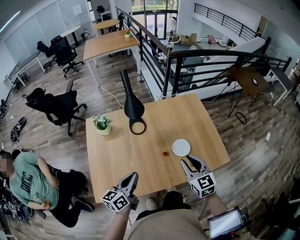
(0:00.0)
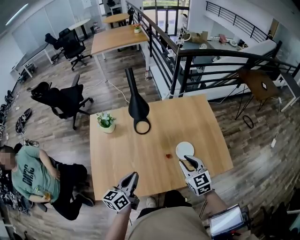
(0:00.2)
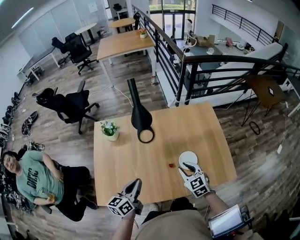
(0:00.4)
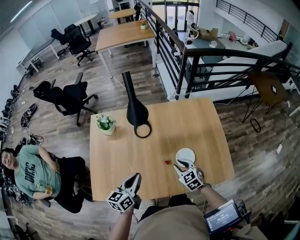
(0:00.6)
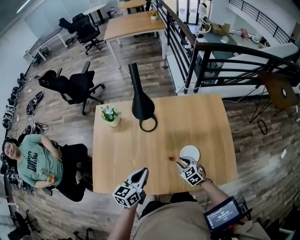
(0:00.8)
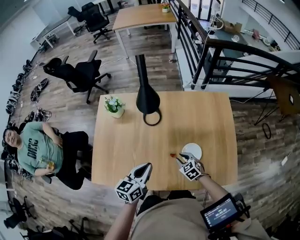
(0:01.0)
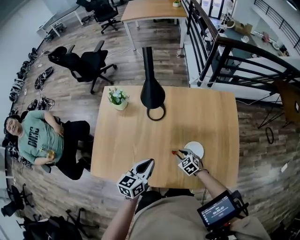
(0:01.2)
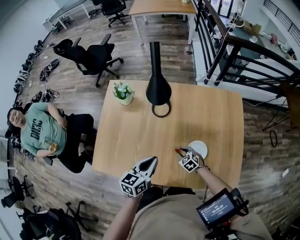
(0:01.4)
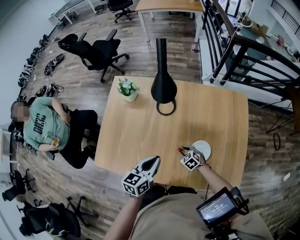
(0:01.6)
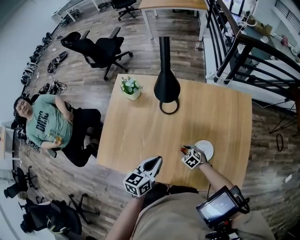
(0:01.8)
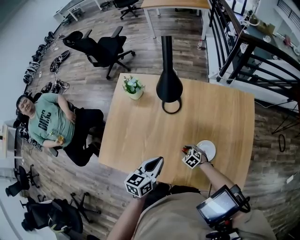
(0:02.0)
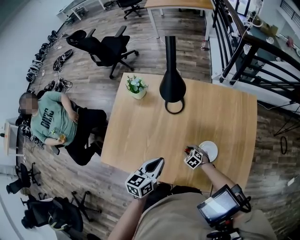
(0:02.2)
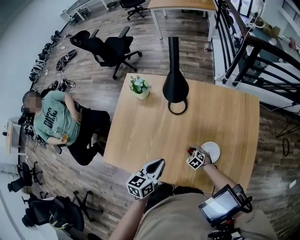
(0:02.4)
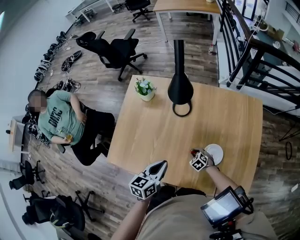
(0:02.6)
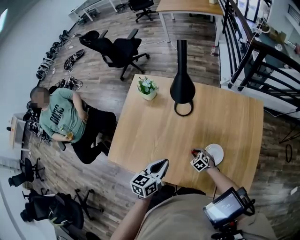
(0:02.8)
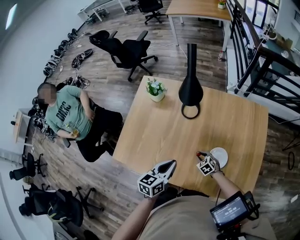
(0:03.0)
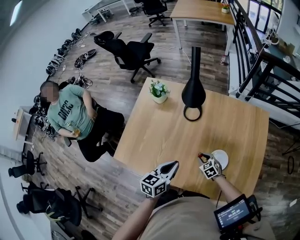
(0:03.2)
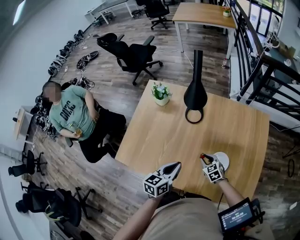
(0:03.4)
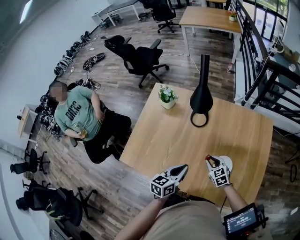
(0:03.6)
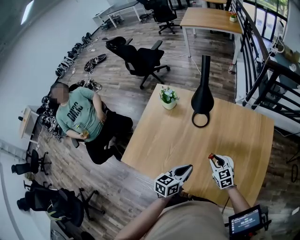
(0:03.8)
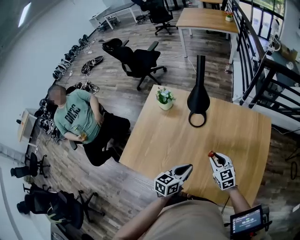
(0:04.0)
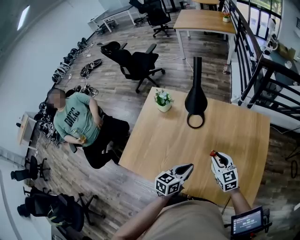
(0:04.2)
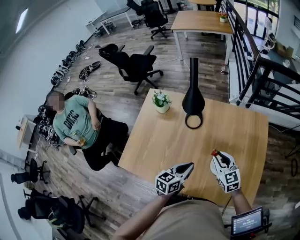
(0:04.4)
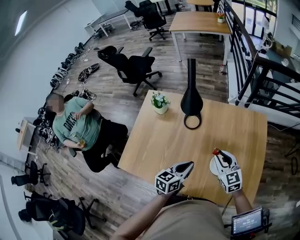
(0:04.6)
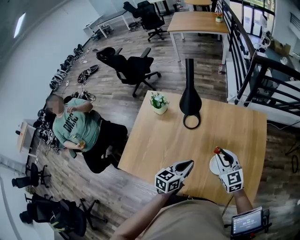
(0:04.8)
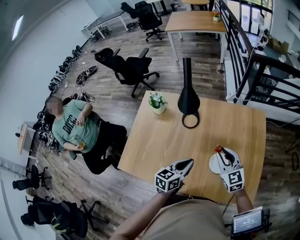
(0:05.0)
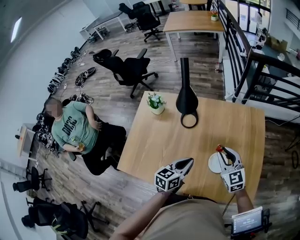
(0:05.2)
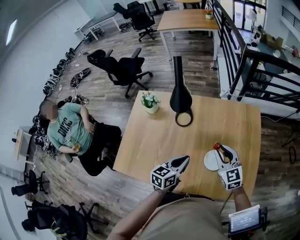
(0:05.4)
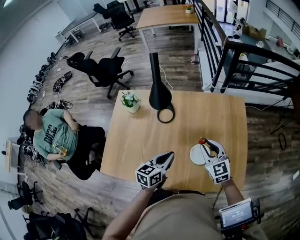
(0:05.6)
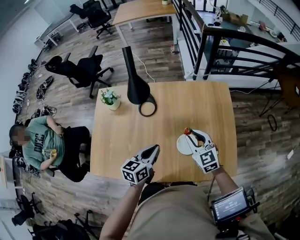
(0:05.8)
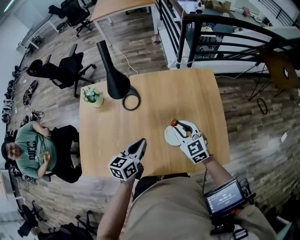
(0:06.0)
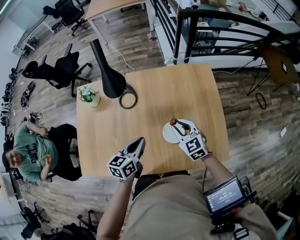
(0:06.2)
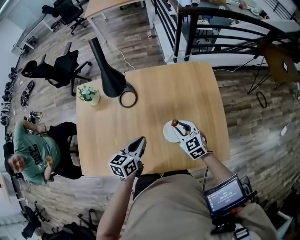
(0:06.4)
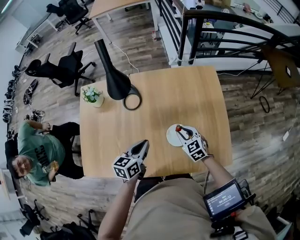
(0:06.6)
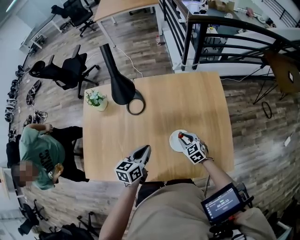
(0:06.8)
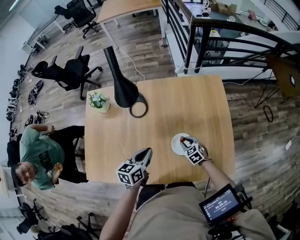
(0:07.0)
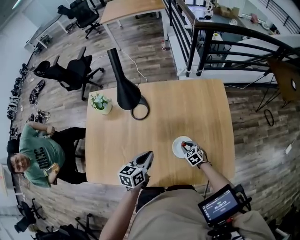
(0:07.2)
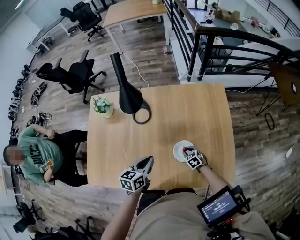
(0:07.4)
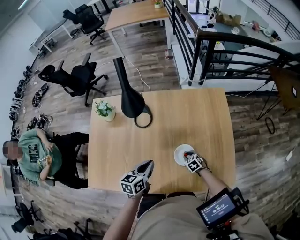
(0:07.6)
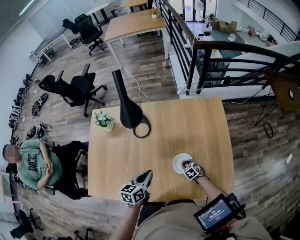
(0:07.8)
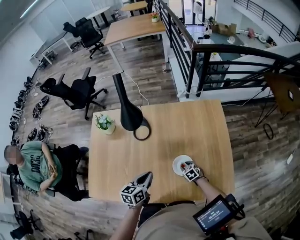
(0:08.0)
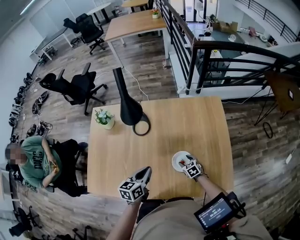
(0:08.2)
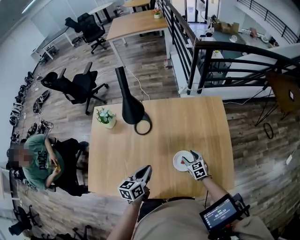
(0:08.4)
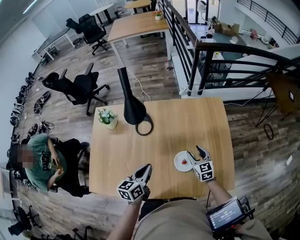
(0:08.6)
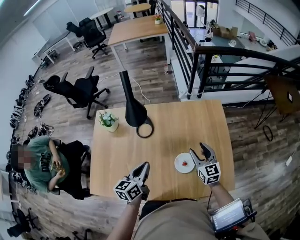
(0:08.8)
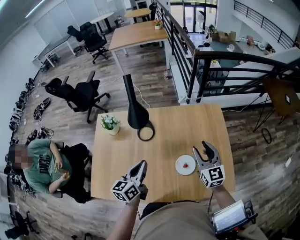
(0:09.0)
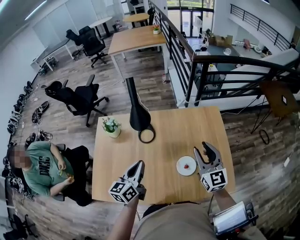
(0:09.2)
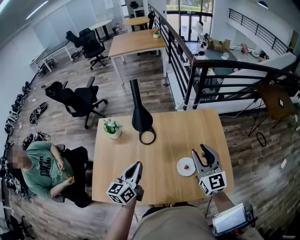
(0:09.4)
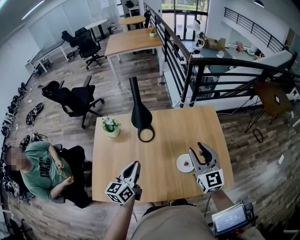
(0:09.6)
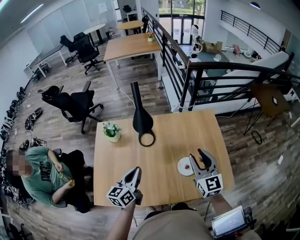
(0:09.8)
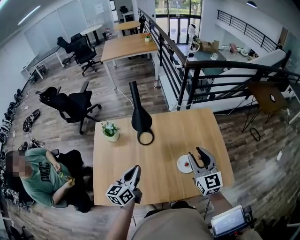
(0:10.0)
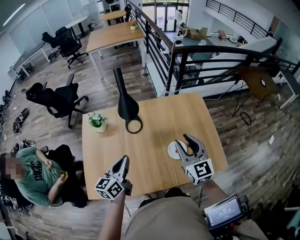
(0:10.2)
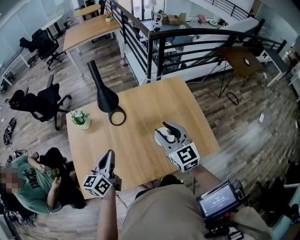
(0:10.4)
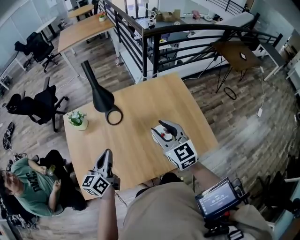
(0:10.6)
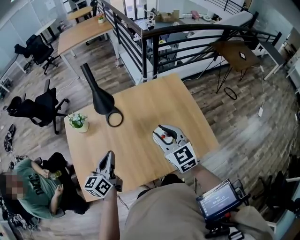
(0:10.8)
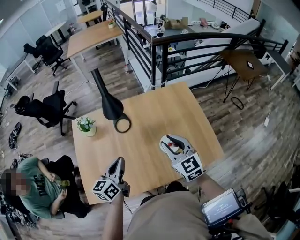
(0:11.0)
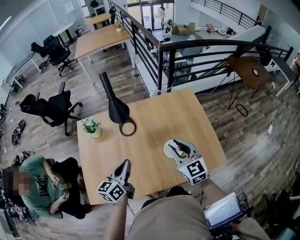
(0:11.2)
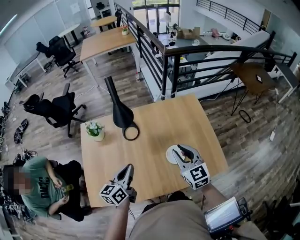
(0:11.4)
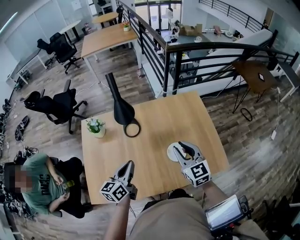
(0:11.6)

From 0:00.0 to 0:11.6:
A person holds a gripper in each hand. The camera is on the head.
From 0:00.0 to 0:01.4: The left gripper ends up roughly 15 cm from where it was, and swivels roughly 20 degrees. Meanwhile the right gripper moves downward, roughly 35 cm, and angles its fingers downward, by approximately 40 degrees.
From 0:01.4 to 0:02.8: The right gripper goes roughly 5 cm downward.
From 0:02.8 to 0:04.4: The right gripper heads upward, covering some 30 cm, and angles its fingers upward, by roughly 40 degrees. The left gripper moves to the right, roughly 10 cm.
From 0:04.4 to 0:05.8: The right gripper travels to the right by roughly 5 cm.
From 0:05.8 to 0:07.2: The left gripper shifts about 5 cm downward. Meanwhile the right gripper moves downward, approximately 25 cm, and angles its fingers downward, by some 30 degrees.
From 0:07.2 to 0:08.8: The right gripper goes approximately 25 cm upward, angles its fingers upward, by approximately 40 degrees, and opens up; the left gripper is displaced upward by roughly 10 cm.
From 0:08.8 to 0:10.2: The left gripper shifts some 10 cm to the left and upward. The right gripper heads upward, backward and to the left, covering approximately 20 cm.
From 0:10.2 to 0:11.6: There are only small adjustments of the grippers.

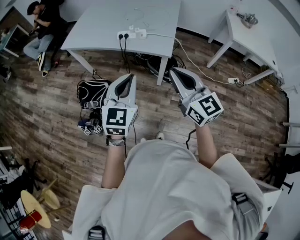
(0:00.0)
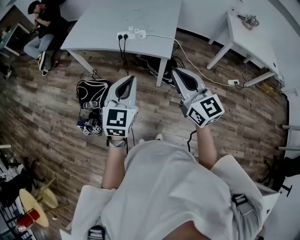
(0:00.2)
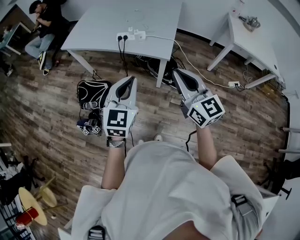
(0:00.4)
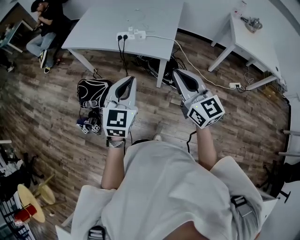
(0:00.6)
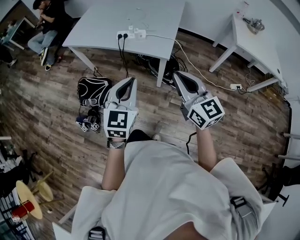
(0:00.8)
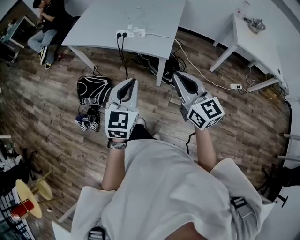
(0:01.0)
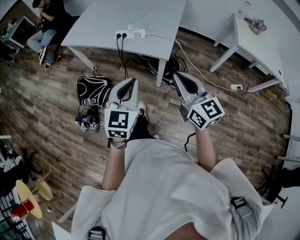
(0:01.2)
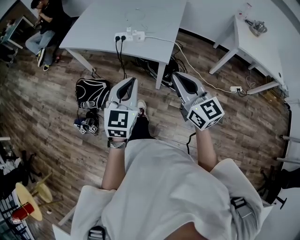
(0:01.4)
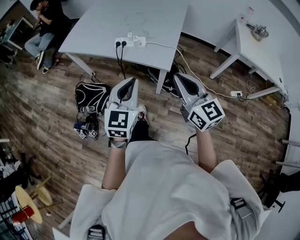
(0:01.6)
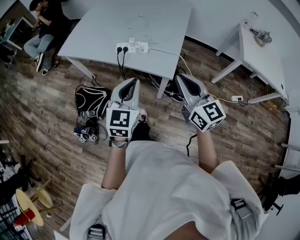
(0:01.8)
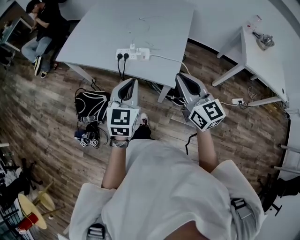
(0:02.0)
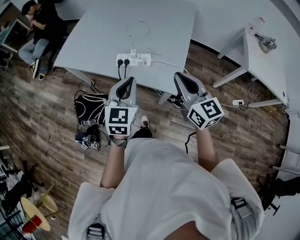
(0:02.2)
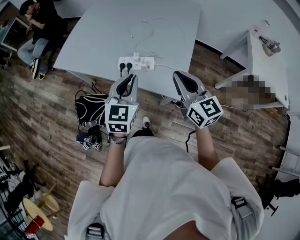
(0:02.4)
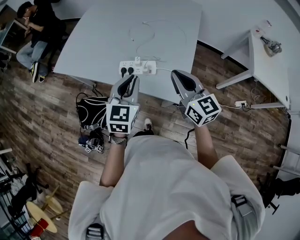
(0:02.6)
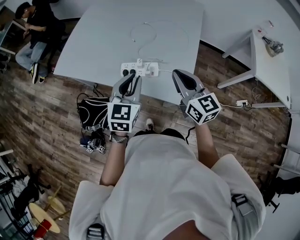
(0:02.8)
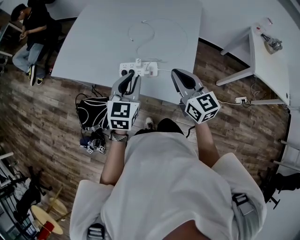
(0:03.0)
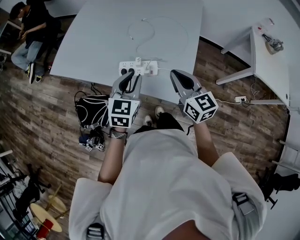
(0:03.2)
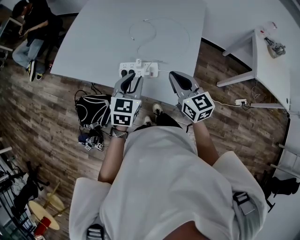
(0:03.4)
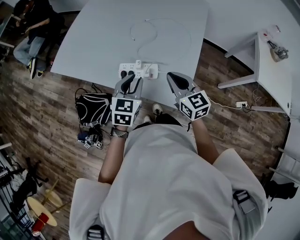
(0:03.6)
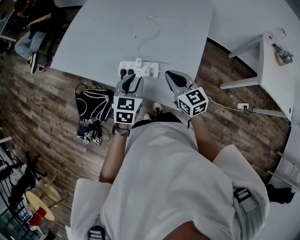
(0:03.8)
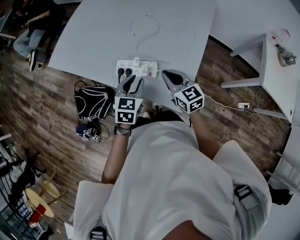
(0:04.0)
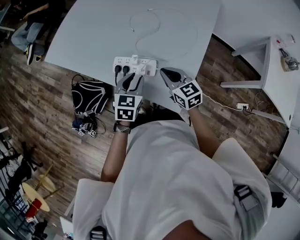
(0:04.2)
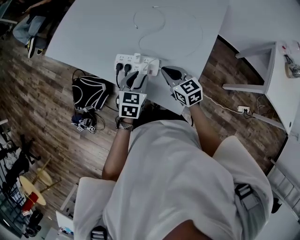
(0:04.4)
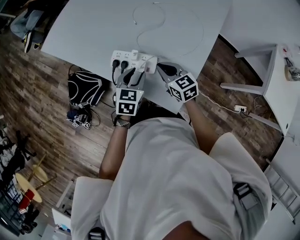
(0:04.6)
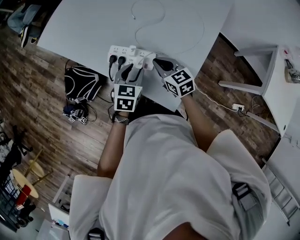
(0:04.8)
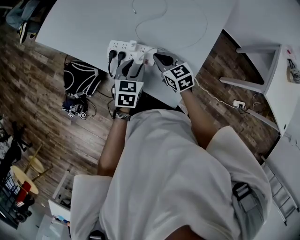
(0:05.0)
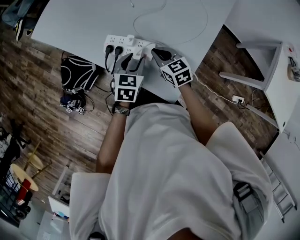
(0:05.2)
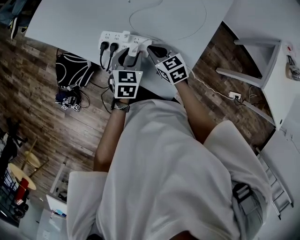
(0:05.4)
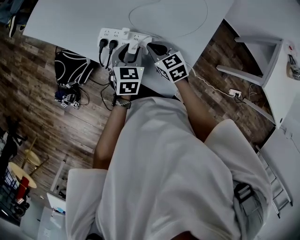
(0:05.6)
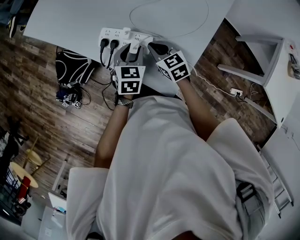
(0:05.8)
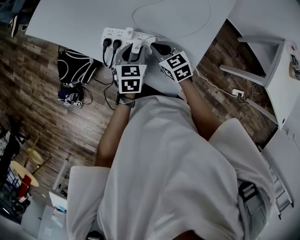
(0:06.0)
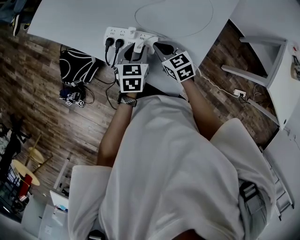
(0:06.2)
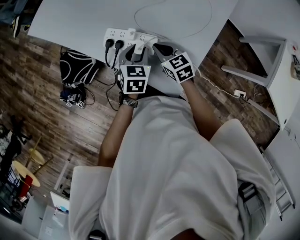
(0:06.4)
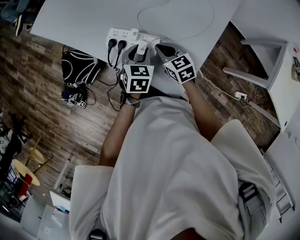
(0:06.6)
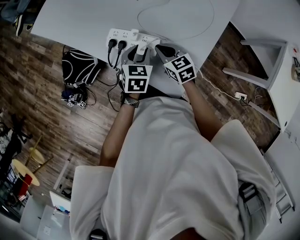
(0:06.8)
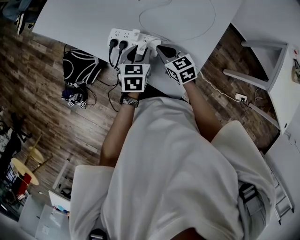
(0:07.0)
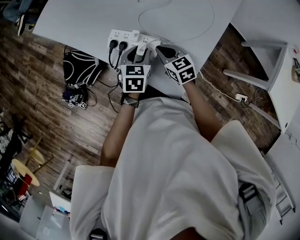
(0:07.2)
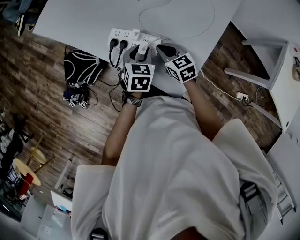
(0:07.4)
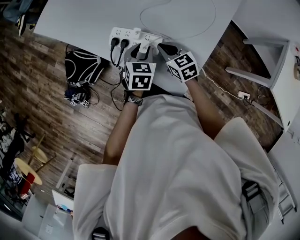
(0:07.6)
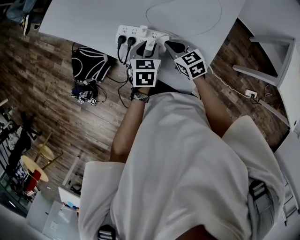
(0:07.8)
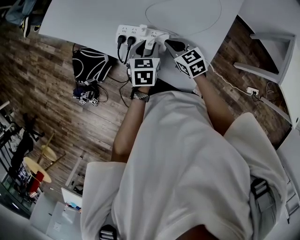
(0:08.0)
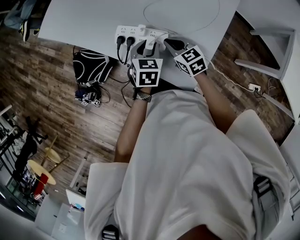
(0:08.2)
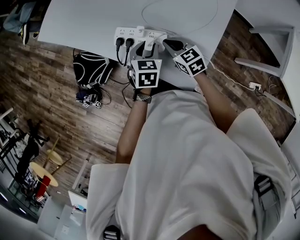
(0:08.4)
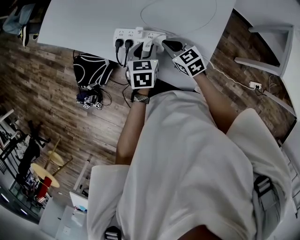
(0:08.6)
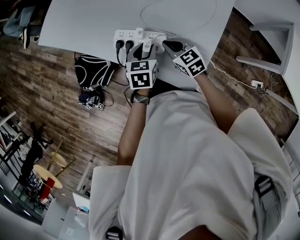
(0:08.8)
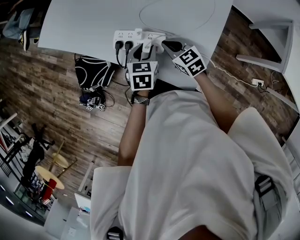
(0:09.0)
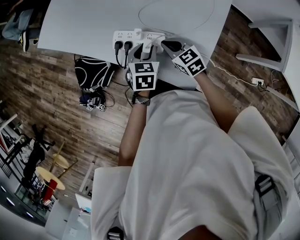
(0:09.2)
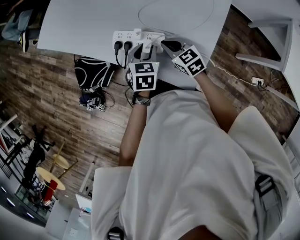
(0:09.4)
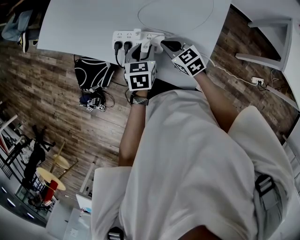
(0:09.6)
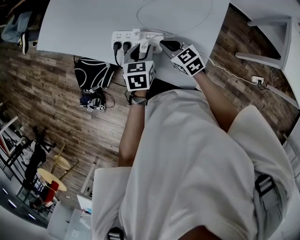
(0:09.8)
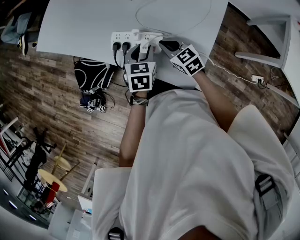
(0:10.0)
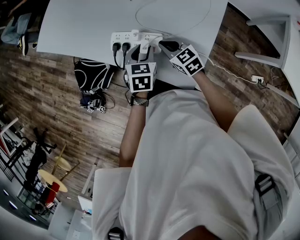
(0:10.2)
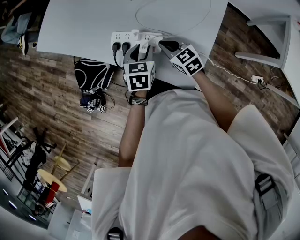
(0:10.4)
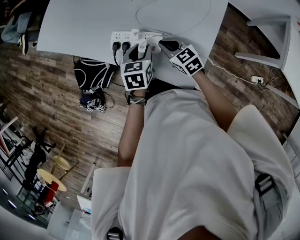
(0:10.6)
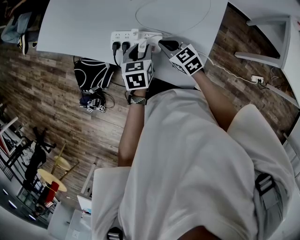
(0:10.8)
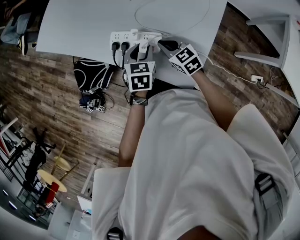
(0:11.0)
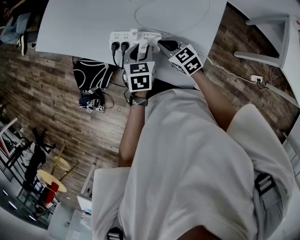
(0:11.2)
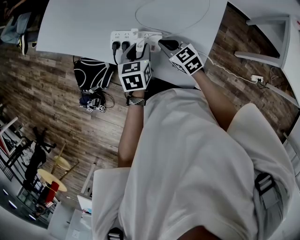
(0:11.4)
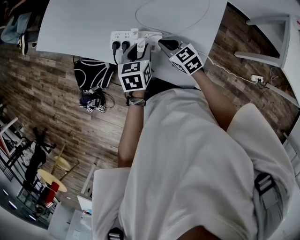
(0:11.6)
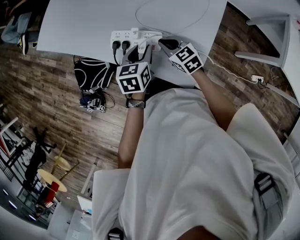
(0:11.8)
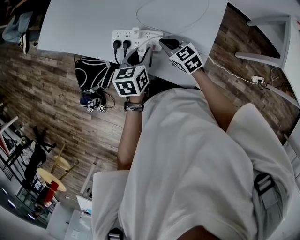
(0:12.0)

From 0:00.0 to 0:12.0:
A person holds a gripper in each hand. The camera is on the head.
From 0:00.0 to 0:01.6: The two grippers go some 15 cm forward and to the right.
From 0:01.6 to 0:03.0: The grippers both shift forward by some 30 cm.
From 0:03.0 to 0:04.4: The left gripper travels downward by some 15 cm. The right gripper moves downward and forward, approximately 20 cm, and changes its angle by about 30 degrees.
From 0:04.4 to 0:06.0: The two grippers go roughly 5 cm downward.
From 0:06.0 to 0:09.0: The grippers stay close to where they were, moving slightly.
From 0:09.0 to 0:10.4: Neither gripper changes place.
From 0:10.4 to 0:12.0: The grippers move only a little.
